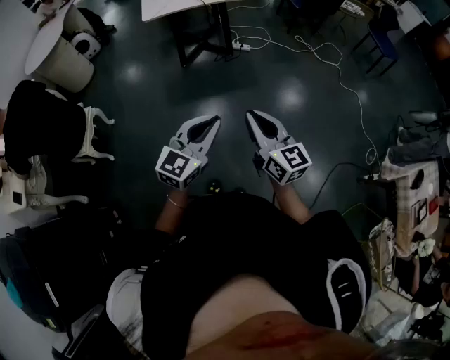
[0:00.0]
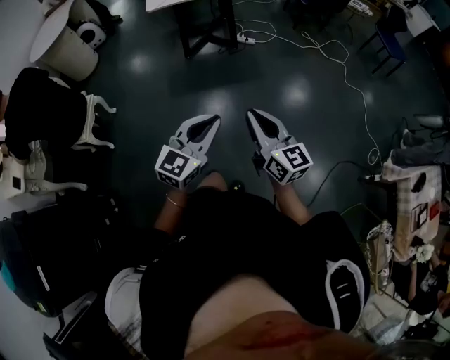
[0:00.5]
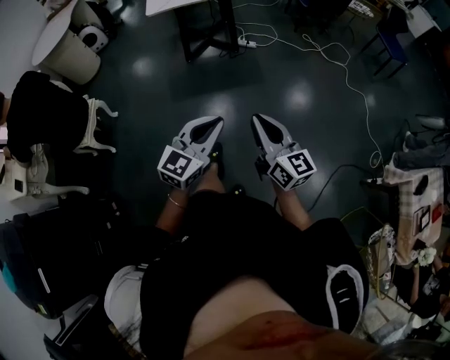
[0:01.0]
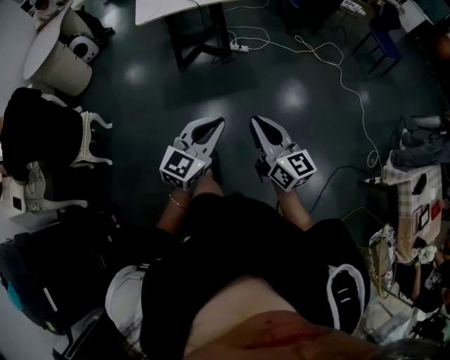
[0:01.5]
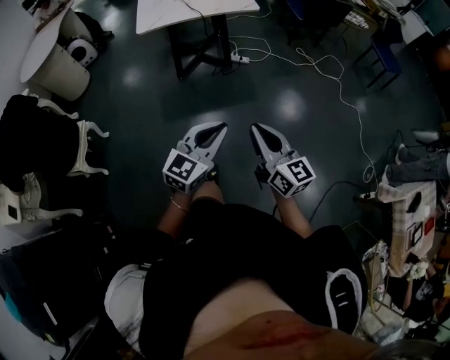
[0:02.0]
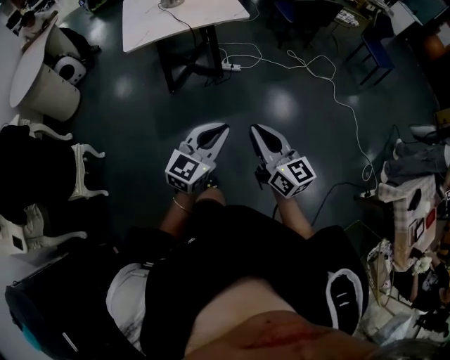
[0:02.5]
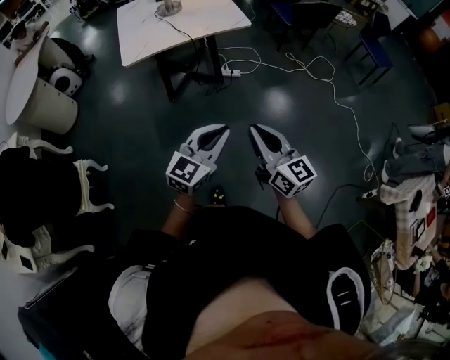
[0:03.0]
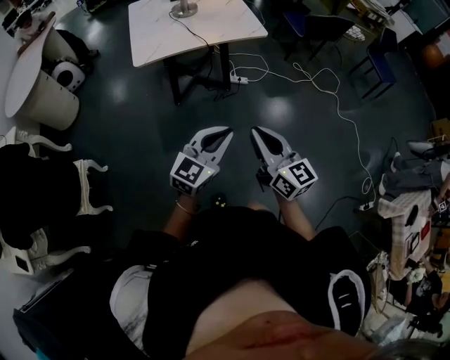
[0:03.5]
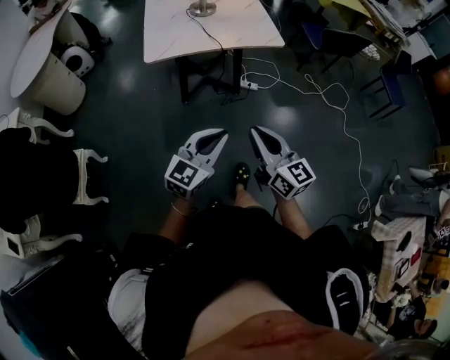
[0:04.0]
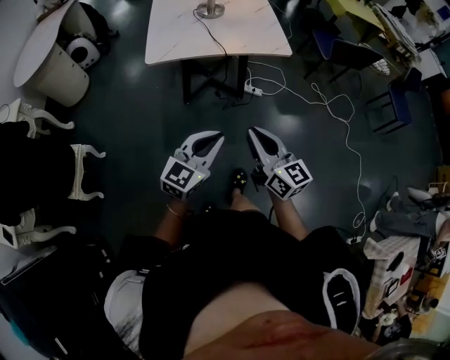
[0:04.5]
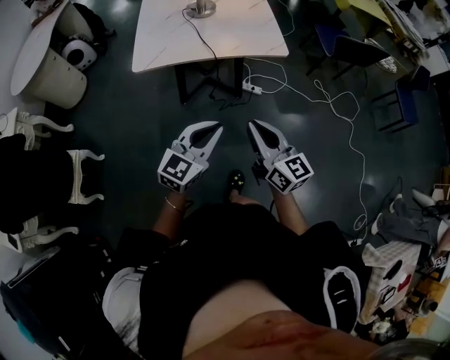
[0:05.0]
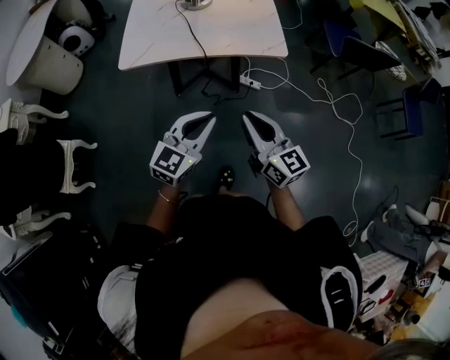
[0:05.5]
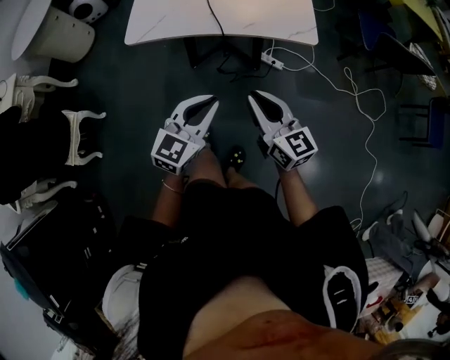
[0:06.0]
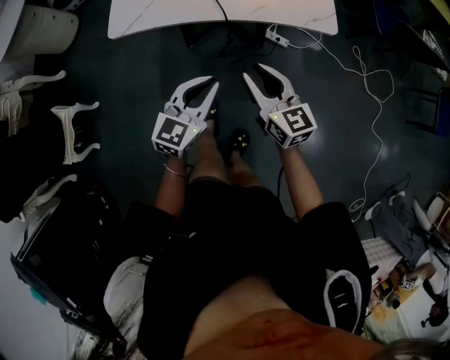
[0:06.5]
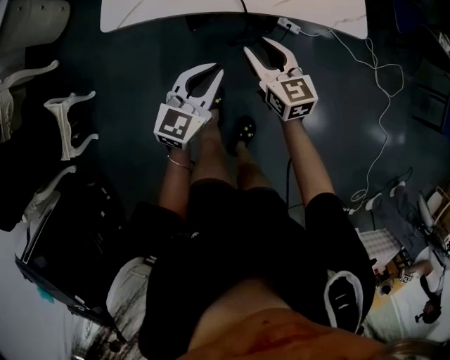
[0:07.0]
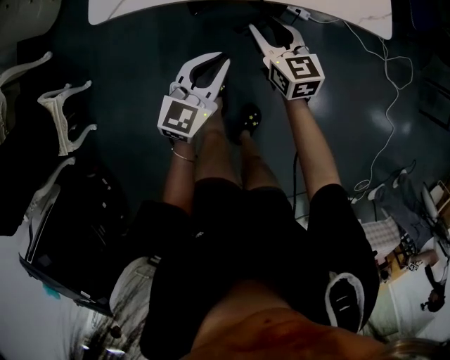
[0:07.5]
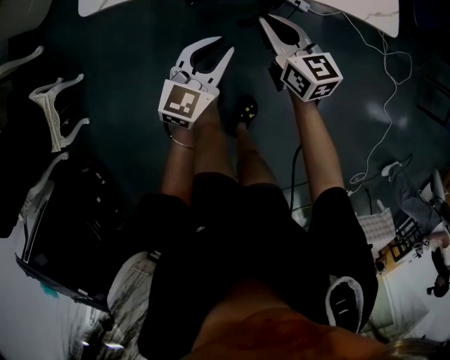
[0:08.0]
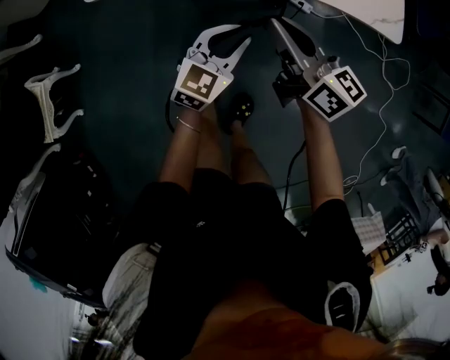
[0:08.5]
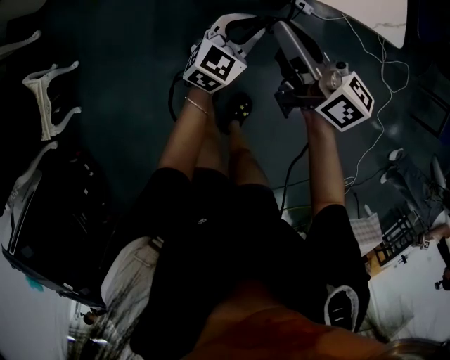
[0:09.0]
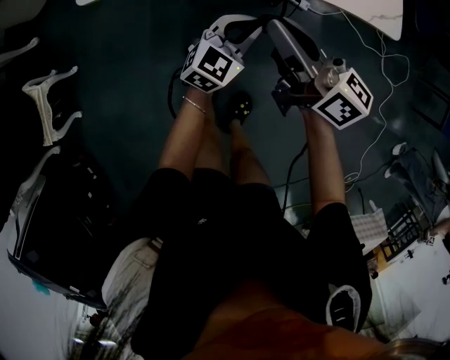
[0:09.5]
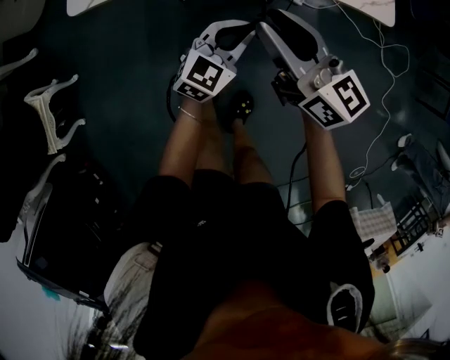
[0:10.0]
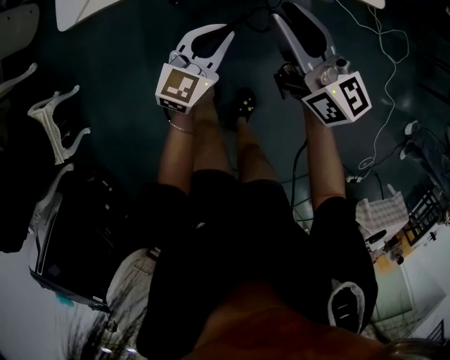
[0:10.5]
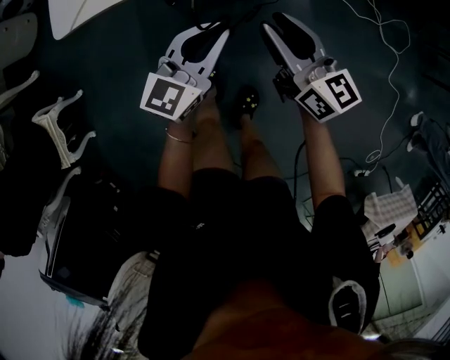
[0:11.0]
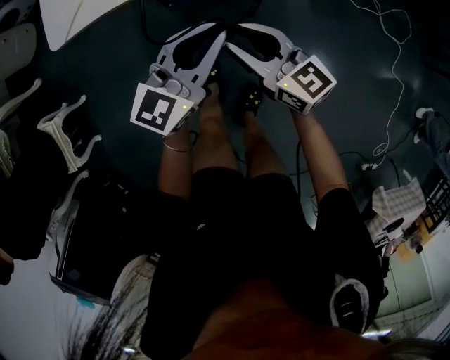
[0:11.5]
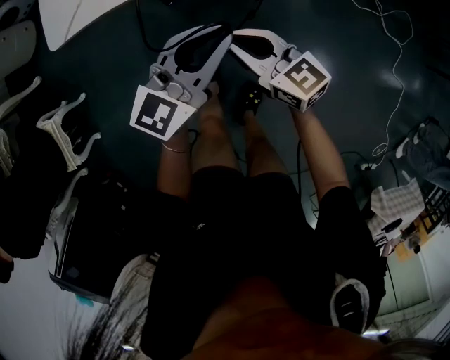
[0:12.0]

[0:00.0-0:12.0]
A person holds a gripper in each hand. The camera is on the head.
0:00.0 to 0:02.0: The grippers both shift forward by some 10 cm.
0:02.0 to 0:04.0: Both grippers move forward and to the left, some 25 cm.
0:04.0 to 0:06.0: Both grippers move forward, some 25 cm. The left gripper swivels some 20 degrees.
0:06.0 to 0:08.0: The right gripper shifts approximately 30 cm downward, forward and to the left, and opens, then closes again. The left gripper goes approximately 25 cm downward and forward.
0:08.0 to 0:10.0: The left gripper shifts about 10 cm to the right. Meanwhile the right gripper heads upward, covering approximately 10 cm.
0:10.0 to 0:12.0: The left gripper travels upward by roughly 10 cm, while the right gripper shifts roughly 10 cm downward and backward.

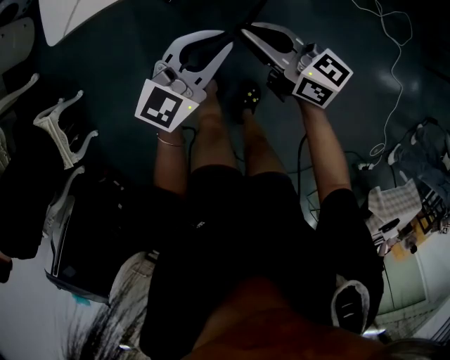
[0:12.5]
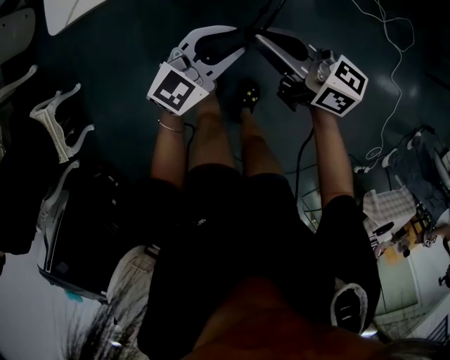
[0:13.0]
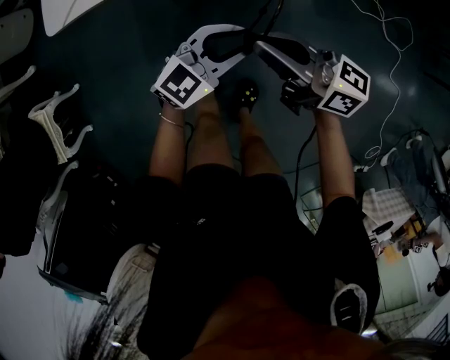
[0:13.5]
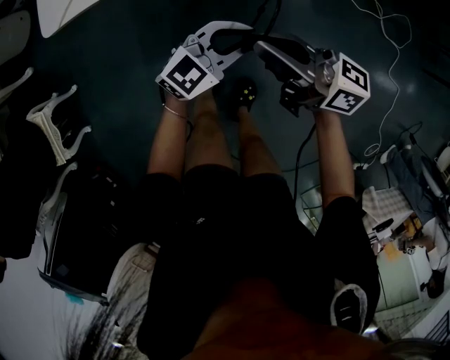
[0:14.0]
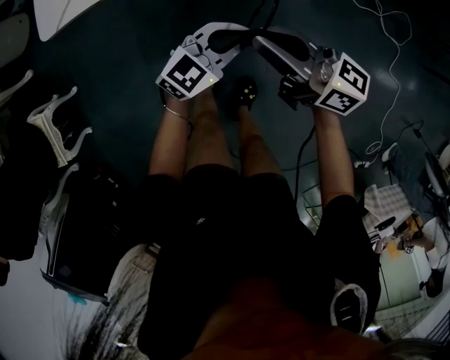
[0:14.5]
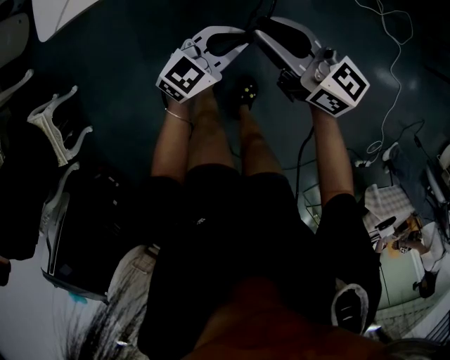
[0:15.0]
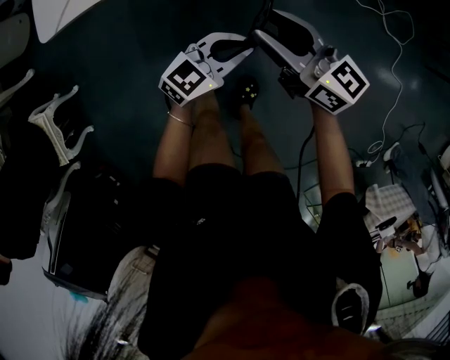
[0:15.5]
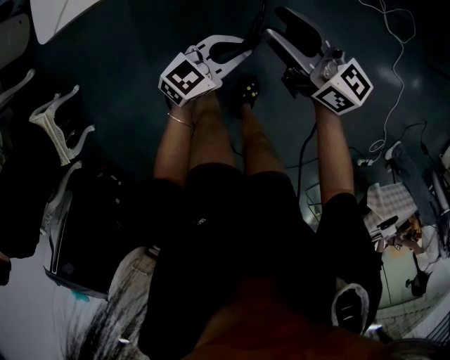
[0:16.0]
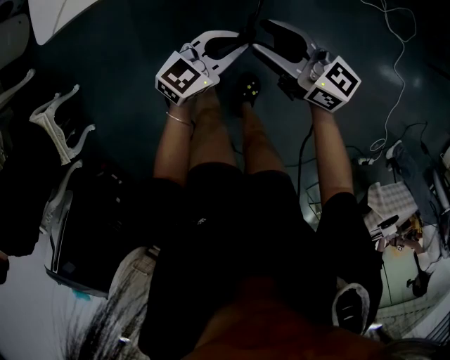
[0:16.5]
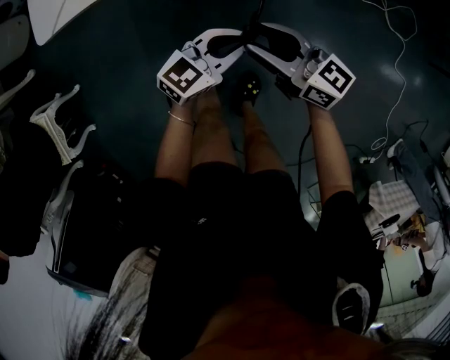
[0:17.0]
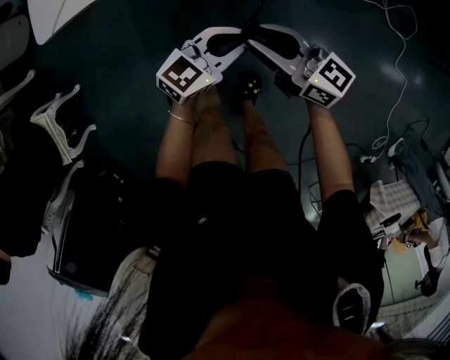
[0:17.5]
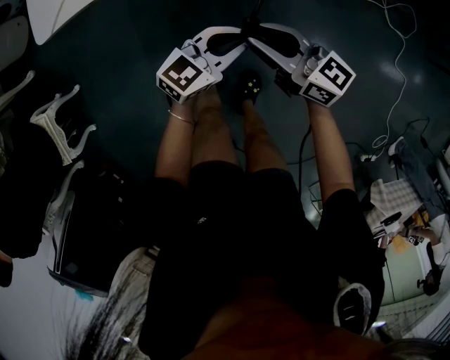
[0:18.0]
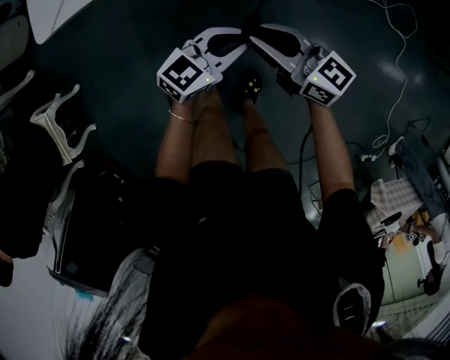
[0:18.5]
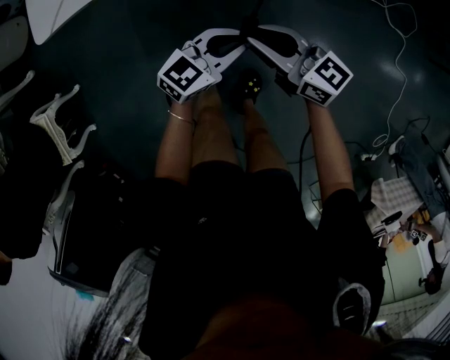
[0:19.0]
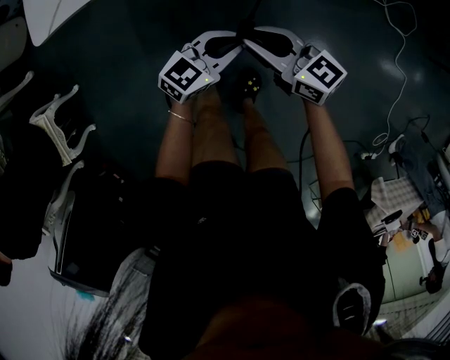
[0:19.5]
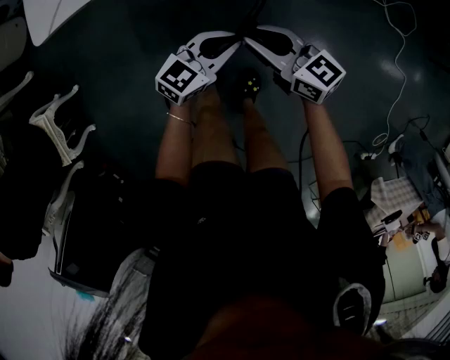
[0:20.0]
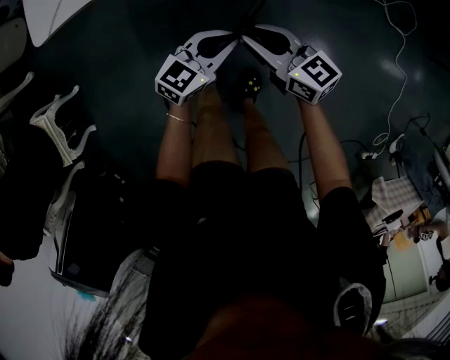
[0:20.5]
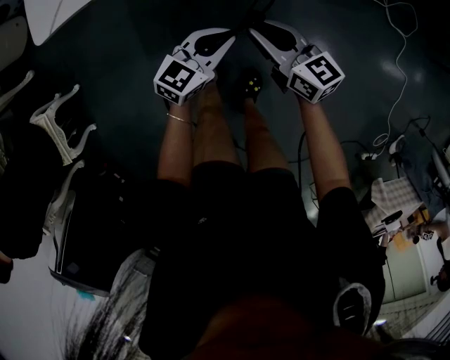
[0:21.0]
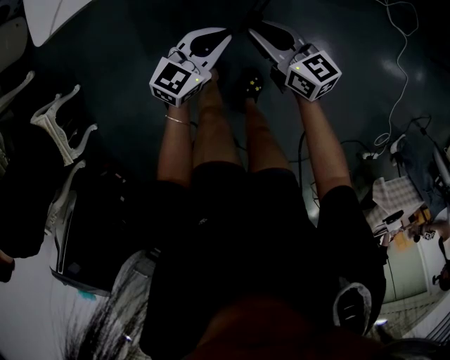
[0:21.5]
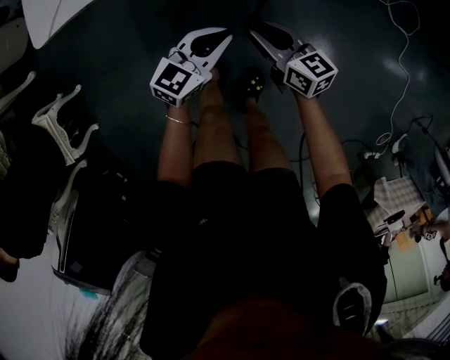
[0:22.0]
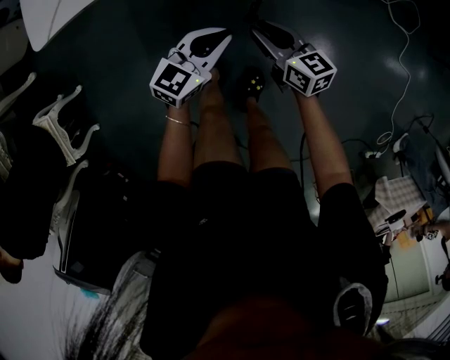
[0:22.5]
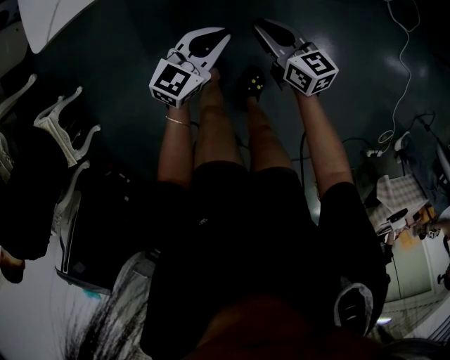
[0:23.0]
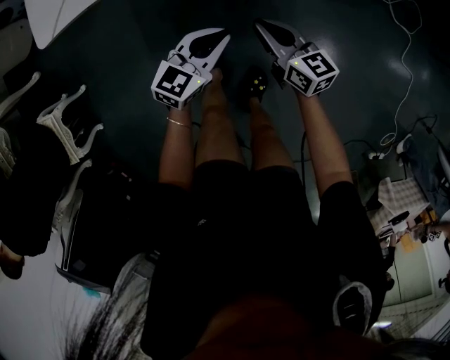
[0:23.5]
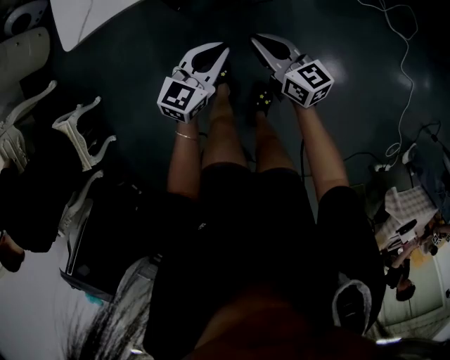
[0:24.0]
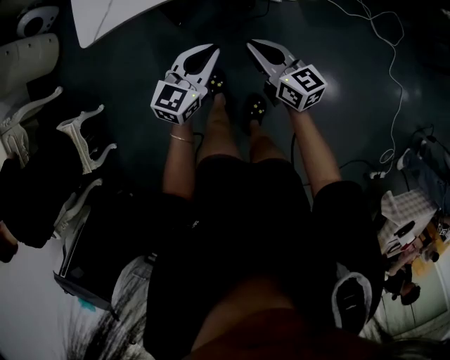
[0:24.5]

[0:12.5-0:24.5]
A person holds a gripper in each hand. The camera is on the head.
0:12.5 to 0:14.5: The left gripper moves downward, roughly 10 cm.
0:14.5 to 0:16.5: The right gripper goes approximately 5 cm downward, and opens its fingers.
0:16.5 to 0:18.5: The right gripper closes up.
0:18.5 to 0:20.5: The grippers move only a little.
0:20.5 to 0:22.5: The right gripper heads downward, covering about 5 cm.
0:22.5 to 0:24.5: The two grippers go roughly 15 cm upward.

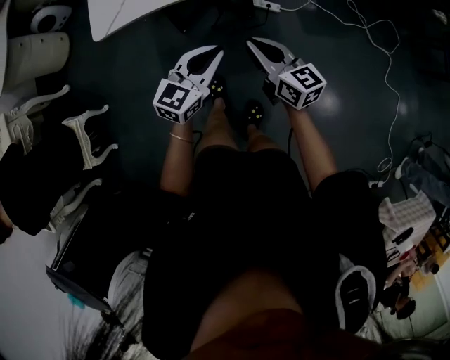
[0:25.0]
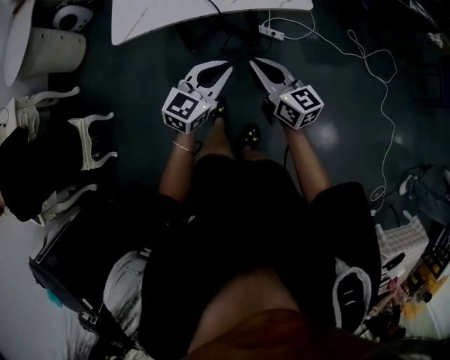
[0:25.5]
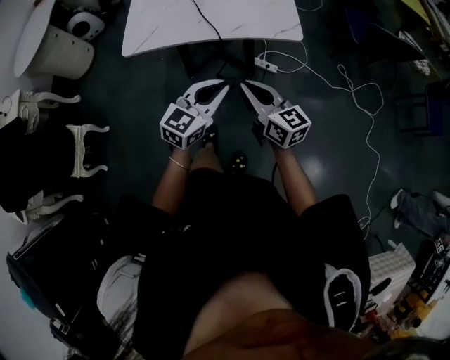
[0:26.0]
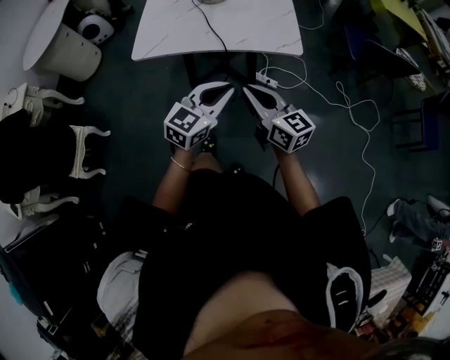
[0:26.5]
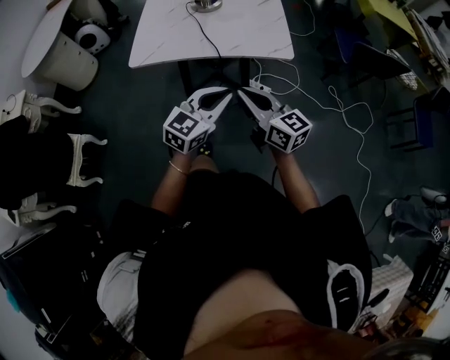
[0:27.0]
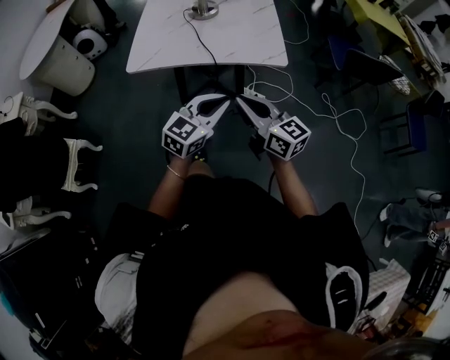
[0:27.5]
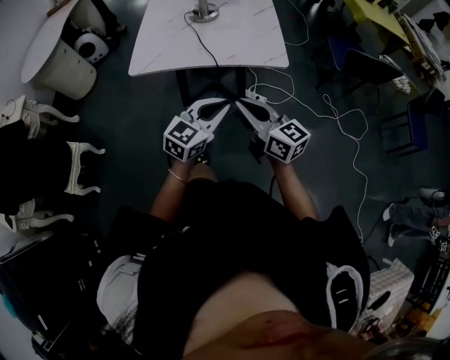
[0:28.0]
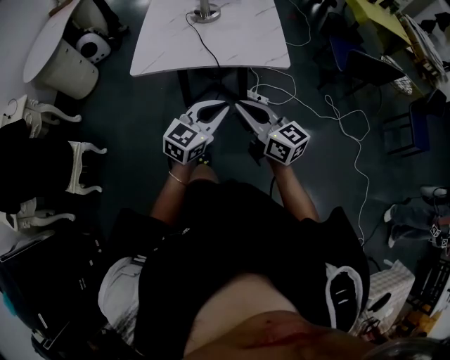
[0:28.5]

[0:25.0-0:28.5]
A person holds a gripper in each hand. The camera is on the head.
0:25.0 to 0:27.0: The two grippers go roughly 15 cm upward.
0:27.0 to 0:28.5: The grippers move only a little.
